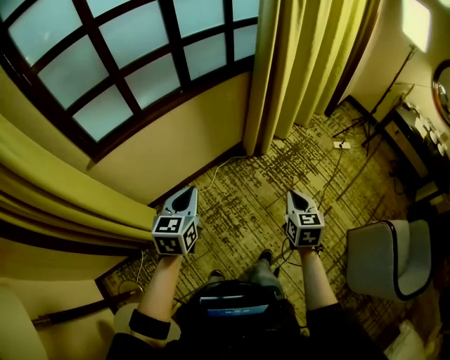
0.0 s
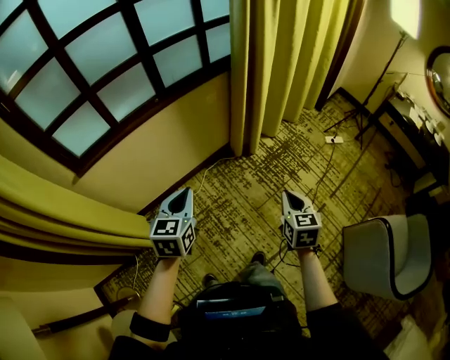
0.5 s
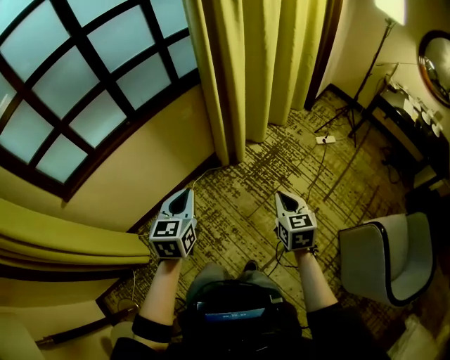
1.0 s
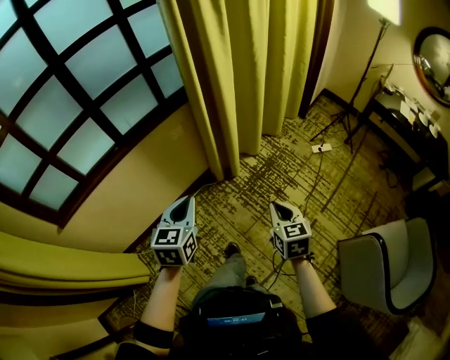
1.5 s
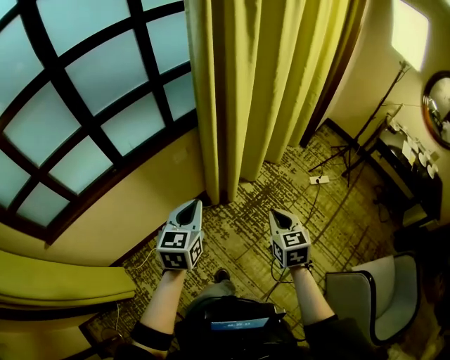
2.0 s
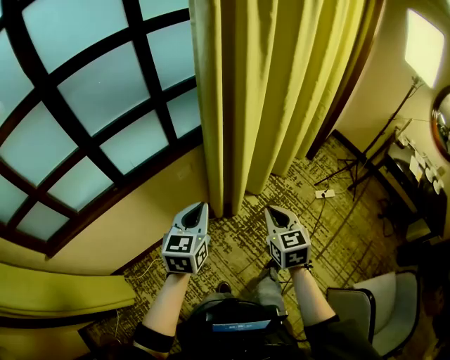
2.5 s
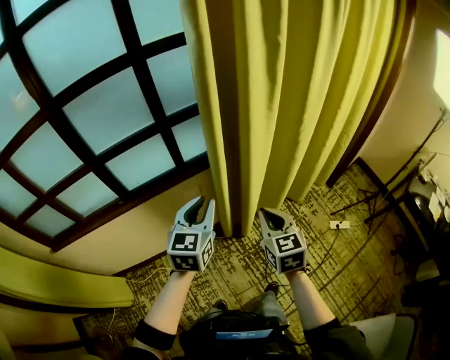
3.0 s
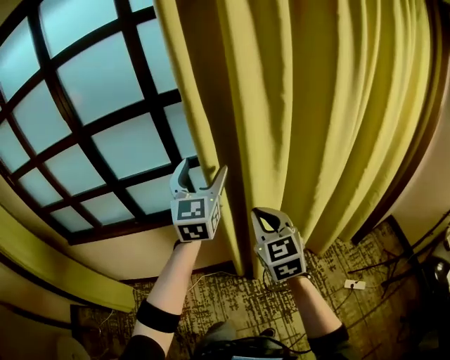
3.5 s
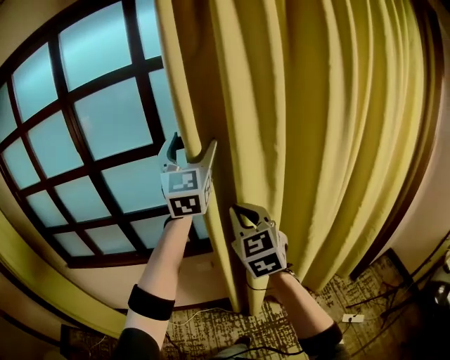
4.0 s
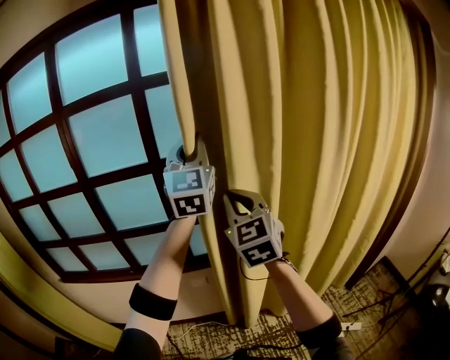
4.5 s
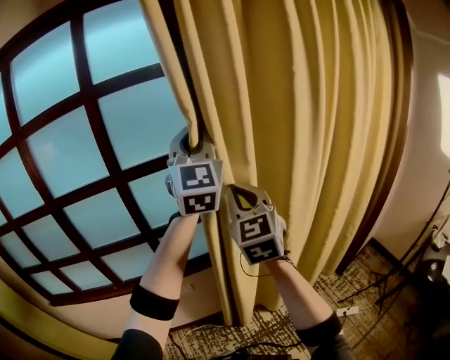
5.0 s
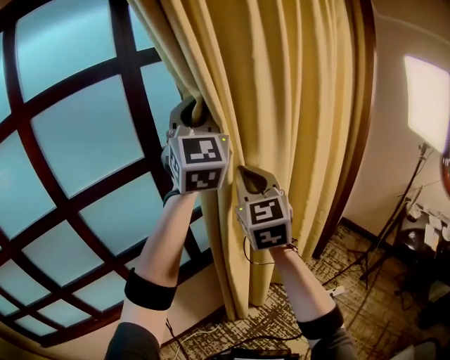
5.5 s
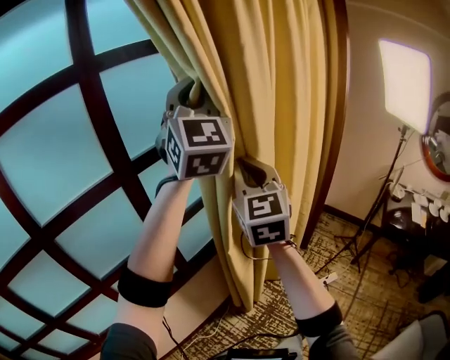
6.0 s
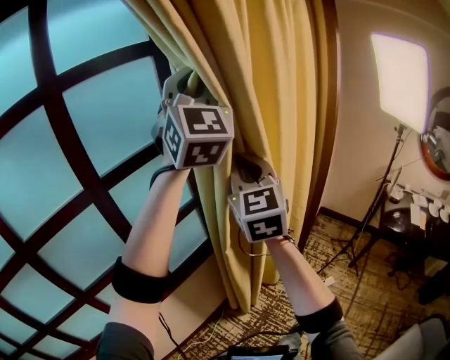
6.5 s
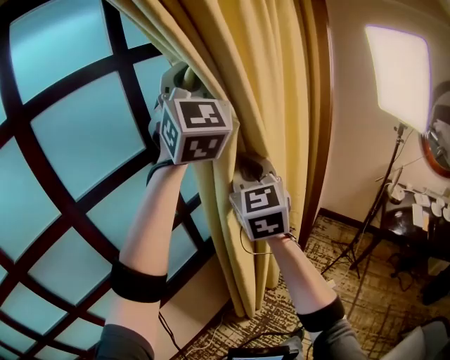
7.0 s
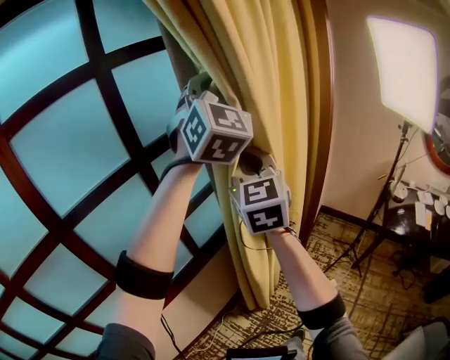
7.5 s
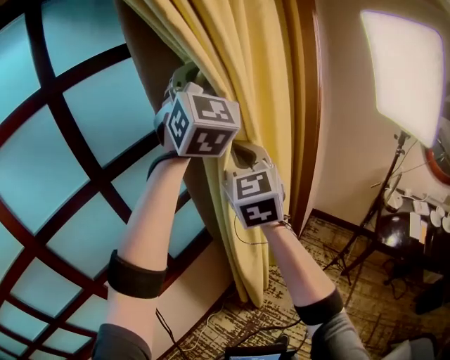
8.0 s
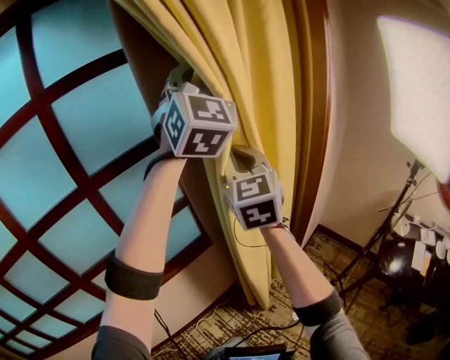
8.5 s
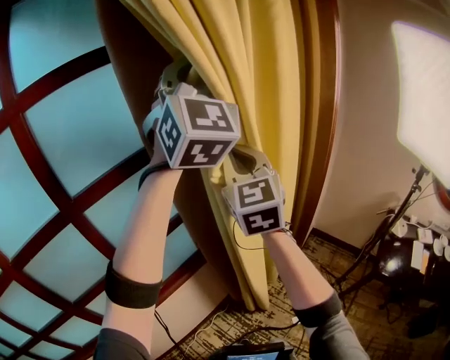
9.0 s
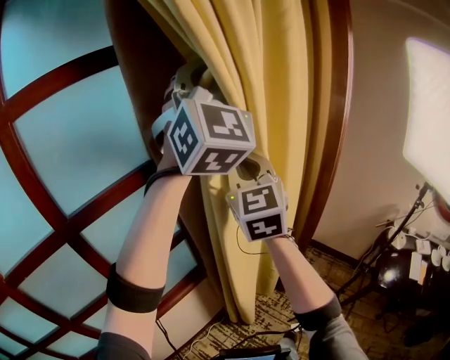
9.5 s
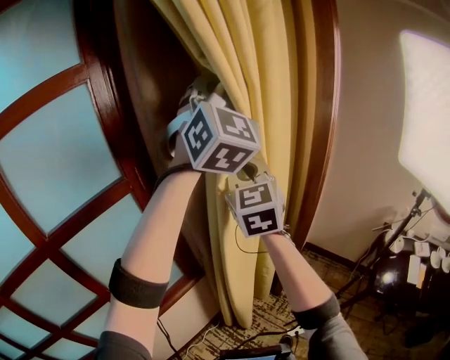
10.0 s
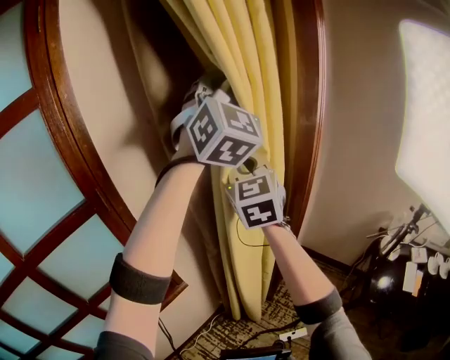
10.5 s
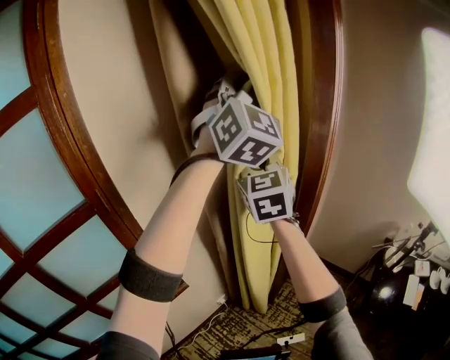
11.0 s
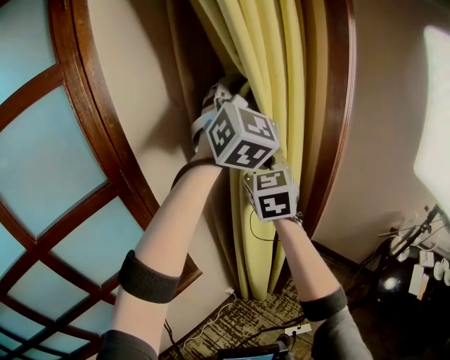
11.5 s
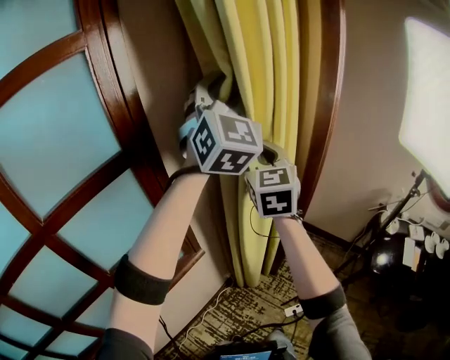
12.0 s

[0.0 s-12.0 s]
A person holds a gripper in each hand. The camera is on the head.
0.0 to 2.0 s: The grippers both shift forward and to the right by about 40 cm.
2.0 to 4.0 s: The right gripper changes place by roughly 50 cm, and rotates about 50 degrees, while the left gripper travels upward by some 40 cm, angles its fingers upward, by approximately 40 degrees, and opens up.
4.0 to 6.0 s: The right gripper moves about 30 cm, and rotates roughly 40 degrees, while the left gripper changes place by roughly 35 cm, turns by approximately 30 degrees, and closes up.
6.0 to 8.0 s: Both grippers travel together to the right and forward, about 40 cm.
8.0 to 10.0 s: The grippers both shift forward and to the right by some 20 cm.
10.0 to 12.0 s: The right gripper moves roughly 10 cm forward and comes back; the left gripper travels downward by roughly 5 cm, moves roughly 10 cm to the right and comes back, and opens.

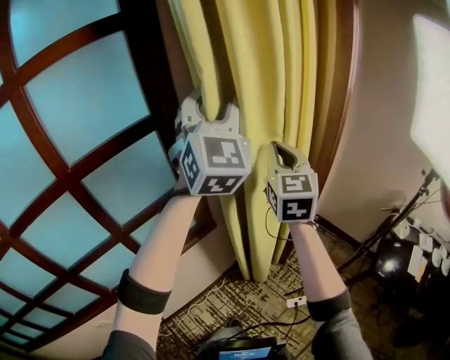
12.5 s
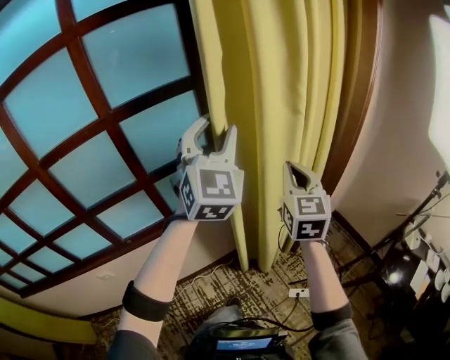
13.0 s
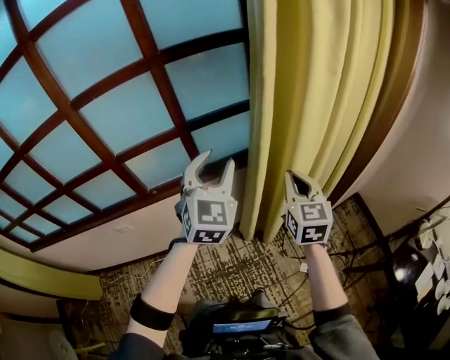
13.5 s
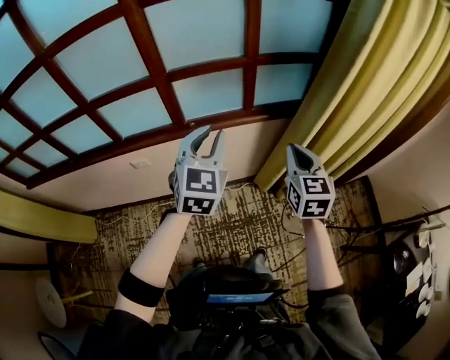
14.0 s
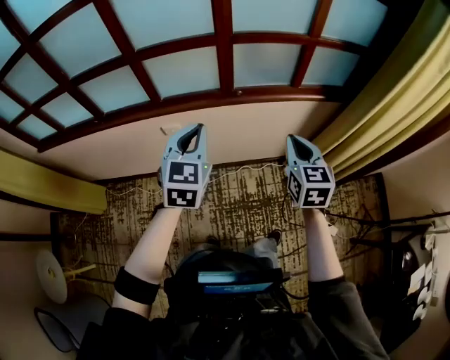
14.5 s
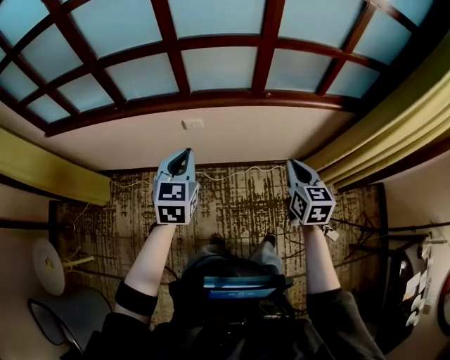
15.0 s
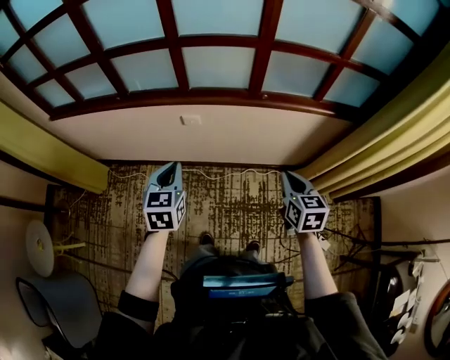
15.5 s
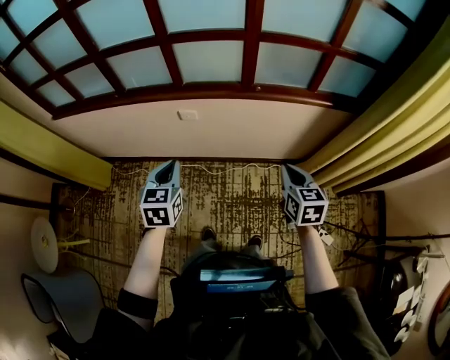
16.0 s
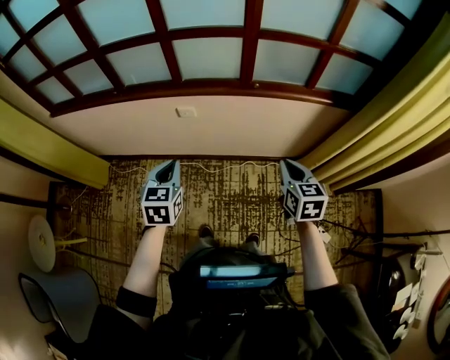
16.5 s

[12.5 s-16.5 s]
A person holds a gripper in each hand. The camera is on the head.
12.5 to 14.5 s: The two grippers travel together, roughly 70 cm. The right gripper swivels roughly 40 degrees; the left gripper tips its fingers downward by some 40 degrees, and closes its fingers.
14.5 to 16.5 s: The right gripper goes approximately 10 cm backward and downward. Meanwhile the left gripper moves to the left, backward and downward, approximately 20 cm, and rotates roughly 20 degrees.

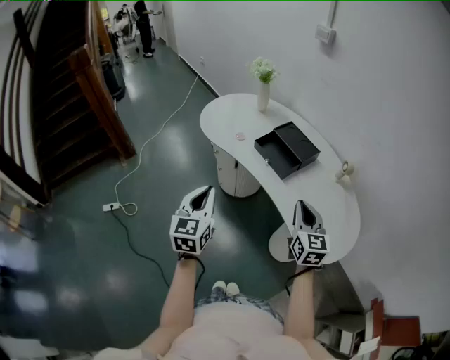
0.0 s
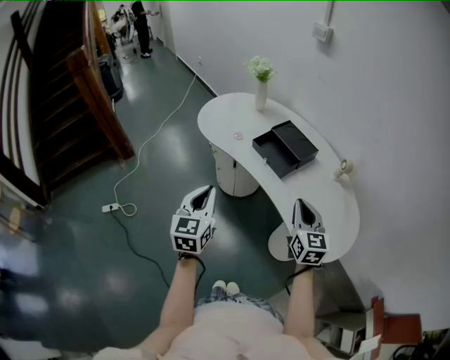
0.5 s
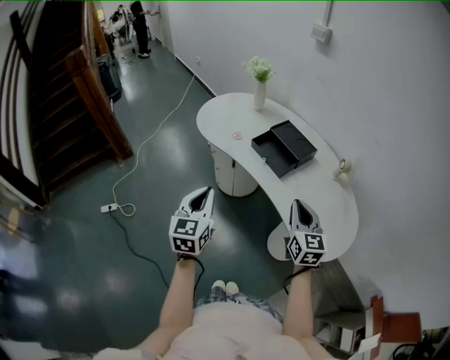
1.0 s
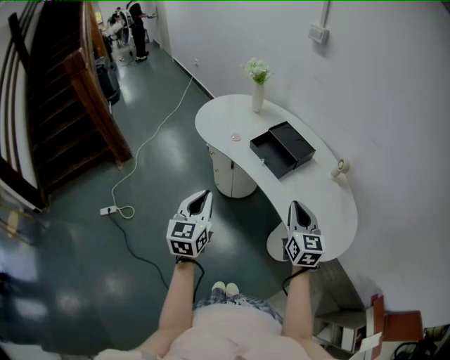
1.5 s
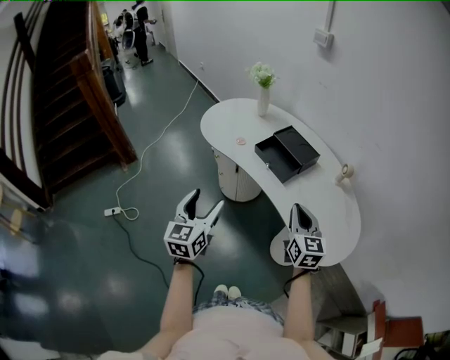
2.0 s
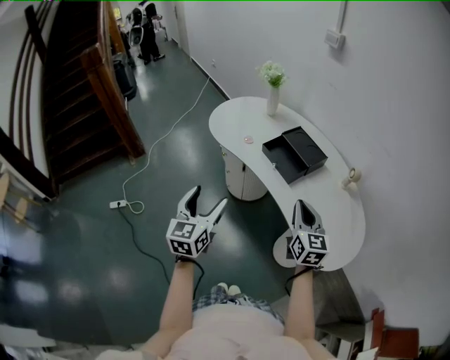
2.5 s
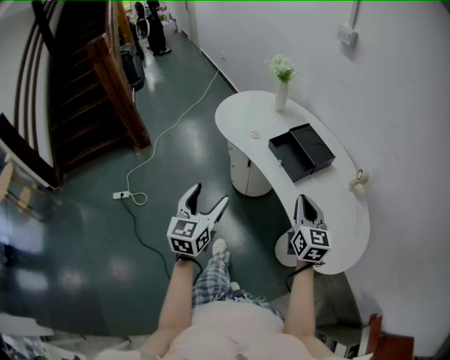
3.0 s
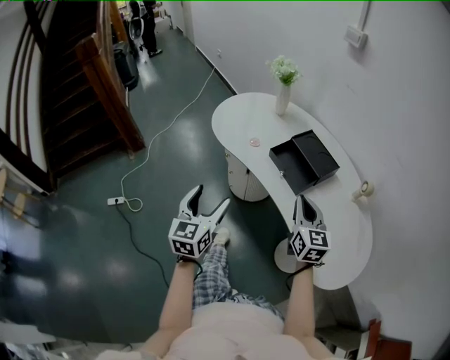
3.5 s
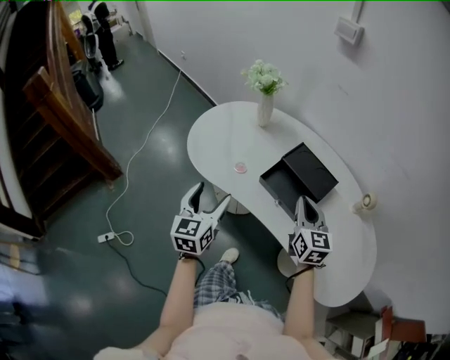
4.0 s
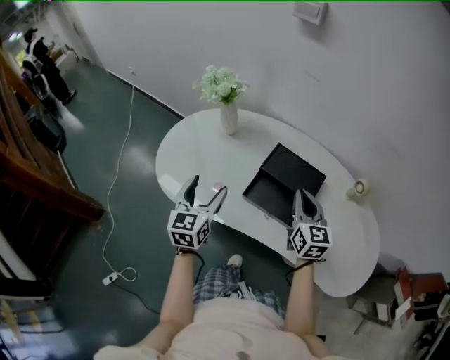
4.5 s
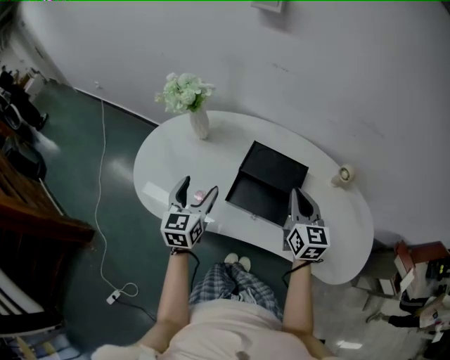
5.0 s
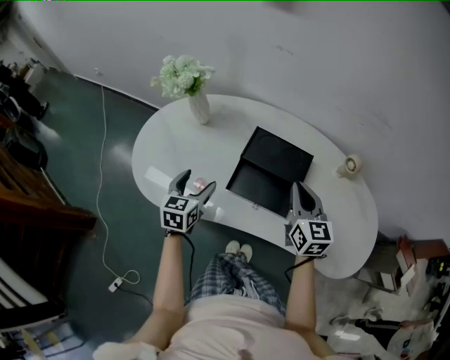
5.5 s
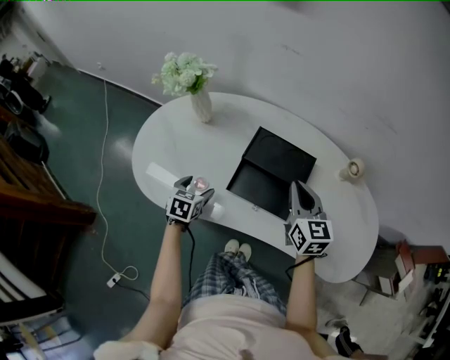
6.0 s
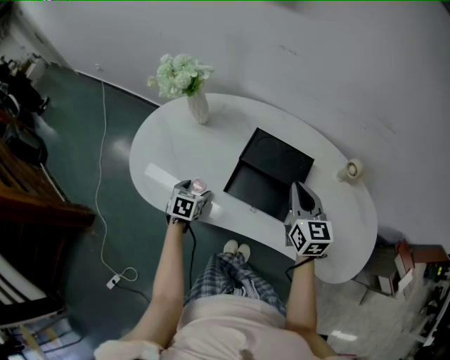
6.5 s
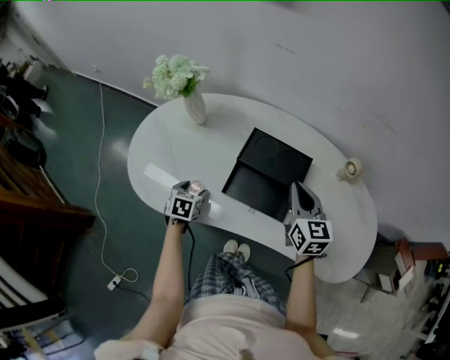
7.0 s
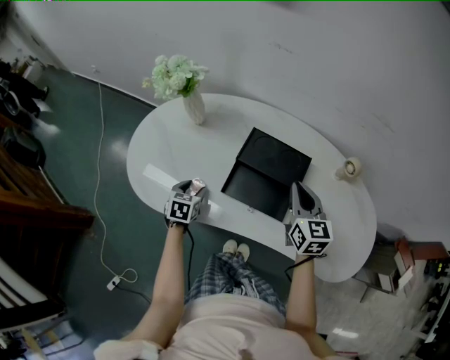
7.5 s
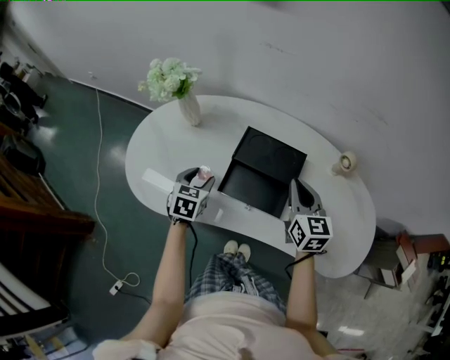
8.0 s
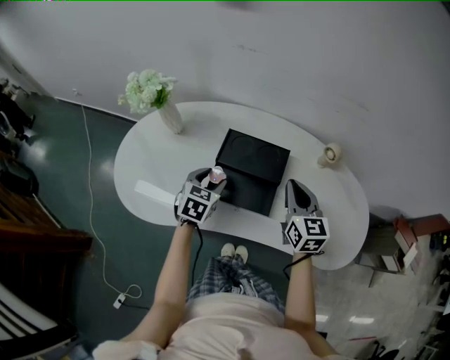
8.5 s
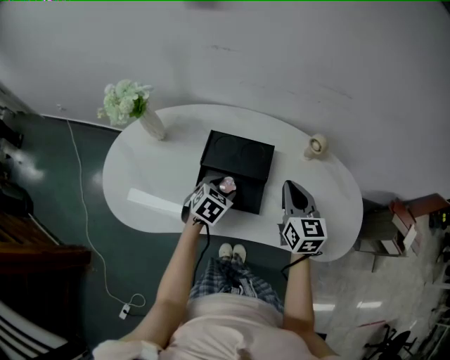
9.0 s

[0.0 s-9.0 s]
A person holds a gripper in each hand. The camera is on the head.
0.0 to 2.0 s: The left gripper opens up.
2.0 to 4.5 s: The right gripper shifts by approximately 35 cm, and swivels about 20 degrees. The left gripper shifts by some 50 cm, and rotates roughly 20 degrees.
4.5 to 7.0 s: The right gripper is displaced to the right by approximately 5 cm, while the left gripper heads downward, covering some 25 cm, and angles its fingers downward, by roughly 40 degrees.
7.0 to 9.0 s: The right gripper heads to the right, covering roughly 10 cm. The left gripper heads to the right, covering roughly 25 cm, and rotates some 40 degrees.

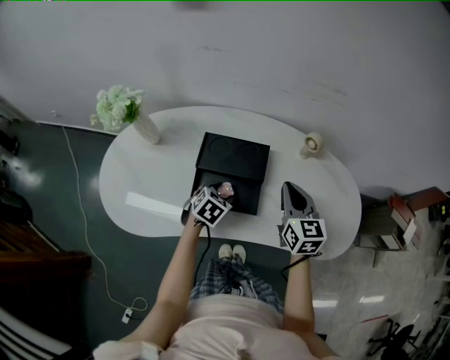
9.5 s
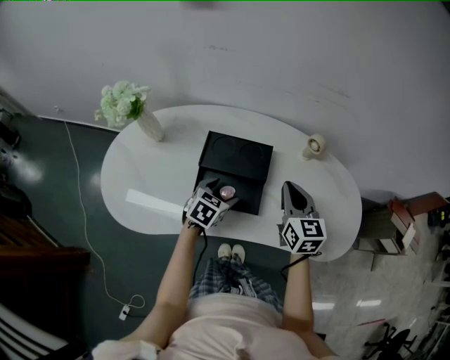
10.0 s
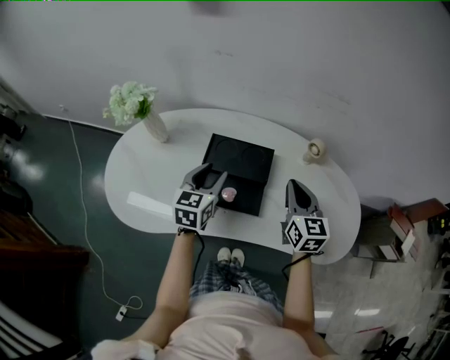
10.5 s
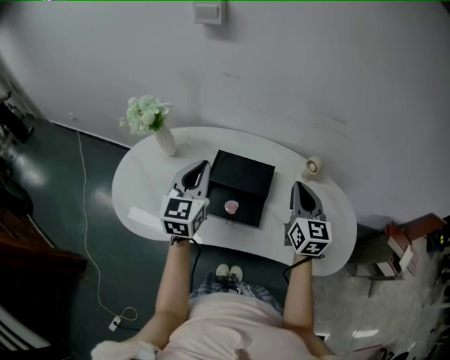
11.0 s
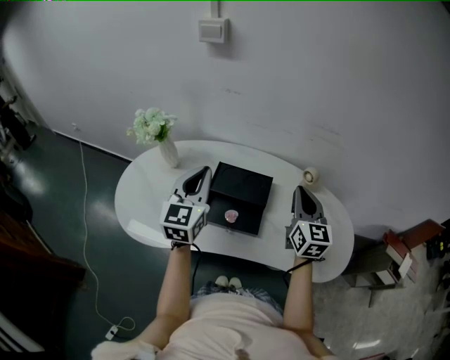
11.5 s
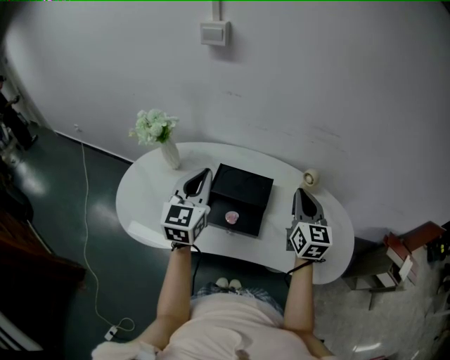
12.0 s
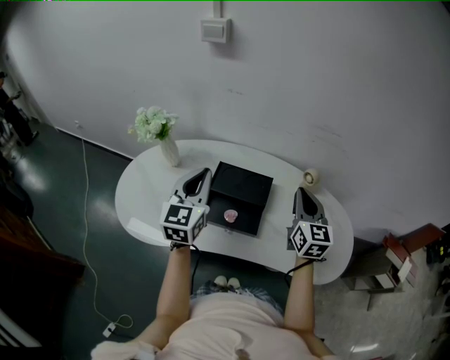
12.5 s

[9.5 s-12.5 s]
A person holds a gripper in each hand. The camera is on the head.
9.5 to 11.0 s: The left gripper shifts some 25 cm upward, tilts its fingers some 50 degrees upward, and closes its fingers, while the right gripper travels upward by roughly 10 cm.
11.0 to 12.5 s: The grippers move only a little.
